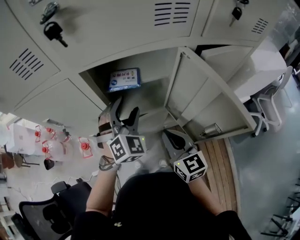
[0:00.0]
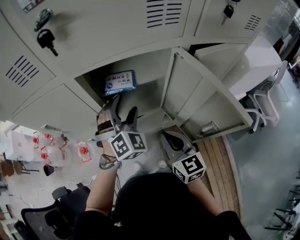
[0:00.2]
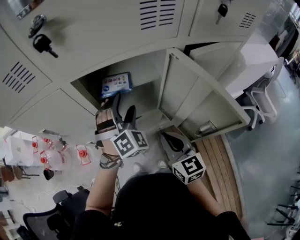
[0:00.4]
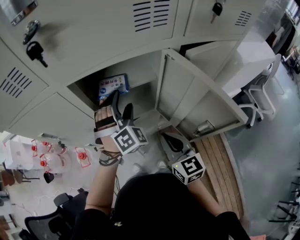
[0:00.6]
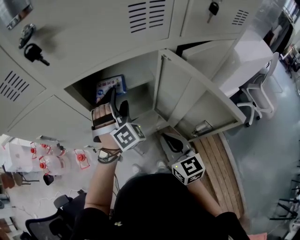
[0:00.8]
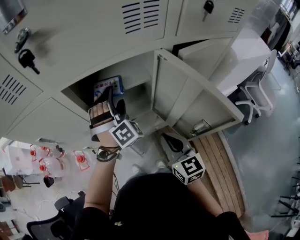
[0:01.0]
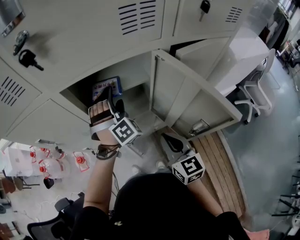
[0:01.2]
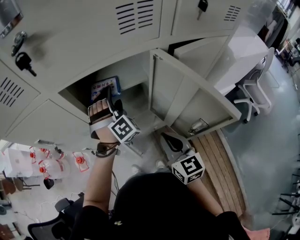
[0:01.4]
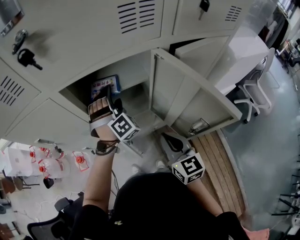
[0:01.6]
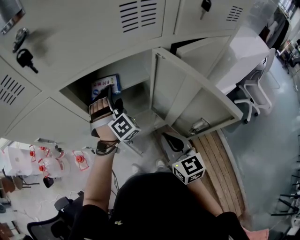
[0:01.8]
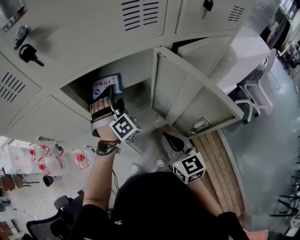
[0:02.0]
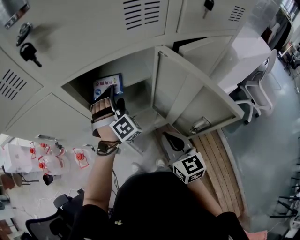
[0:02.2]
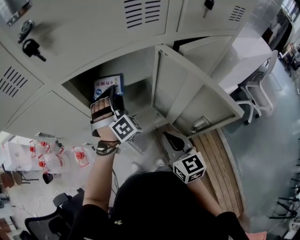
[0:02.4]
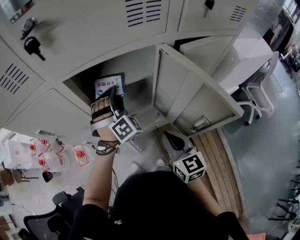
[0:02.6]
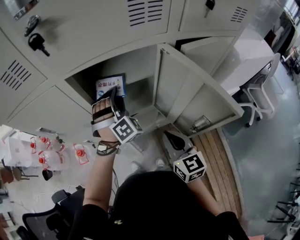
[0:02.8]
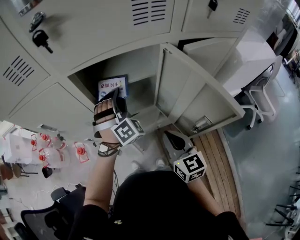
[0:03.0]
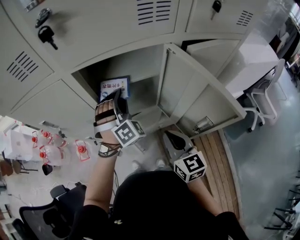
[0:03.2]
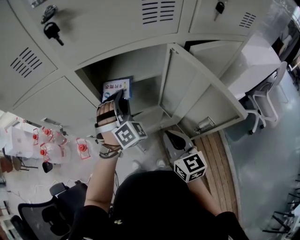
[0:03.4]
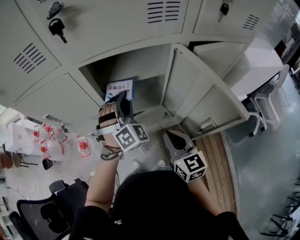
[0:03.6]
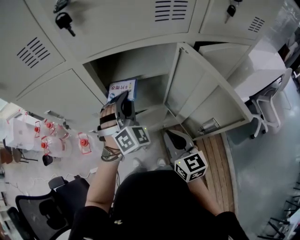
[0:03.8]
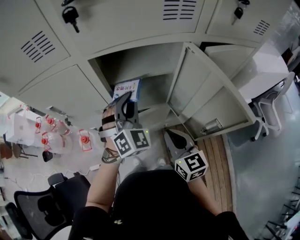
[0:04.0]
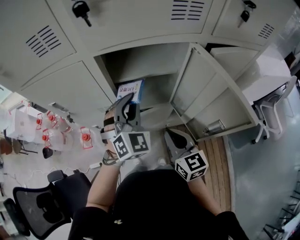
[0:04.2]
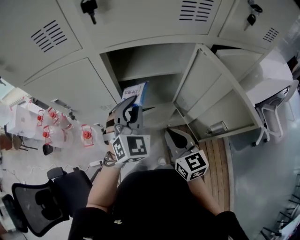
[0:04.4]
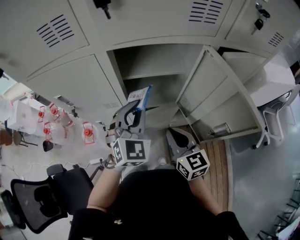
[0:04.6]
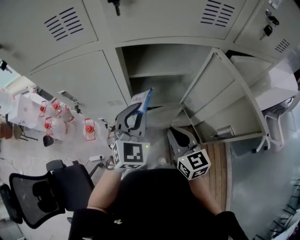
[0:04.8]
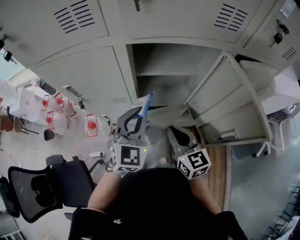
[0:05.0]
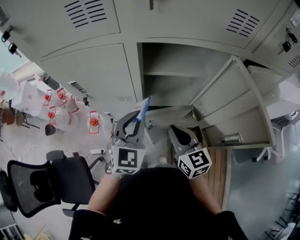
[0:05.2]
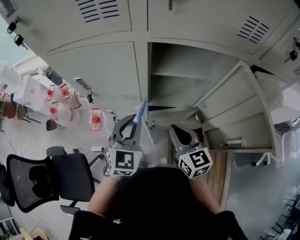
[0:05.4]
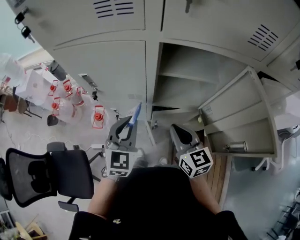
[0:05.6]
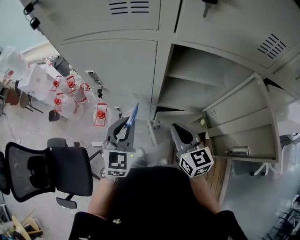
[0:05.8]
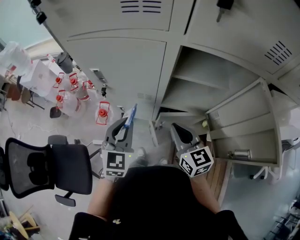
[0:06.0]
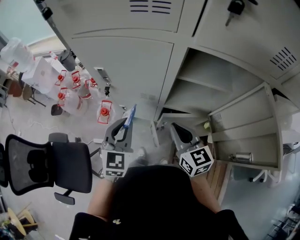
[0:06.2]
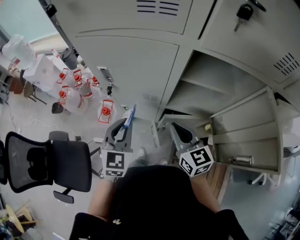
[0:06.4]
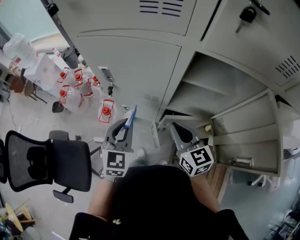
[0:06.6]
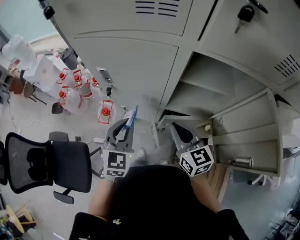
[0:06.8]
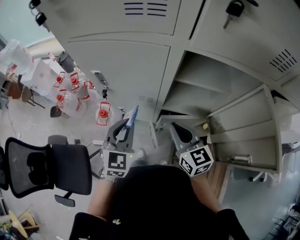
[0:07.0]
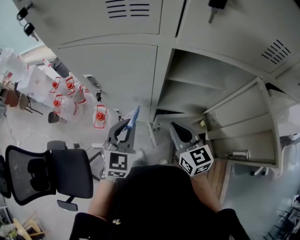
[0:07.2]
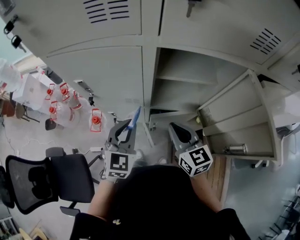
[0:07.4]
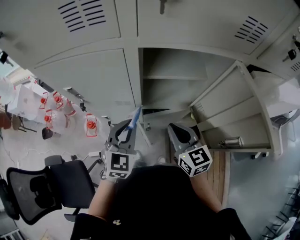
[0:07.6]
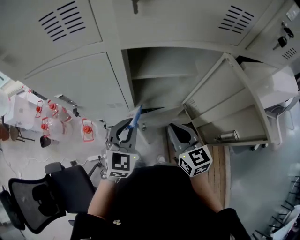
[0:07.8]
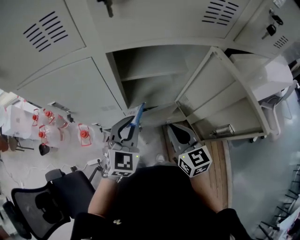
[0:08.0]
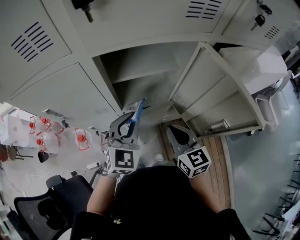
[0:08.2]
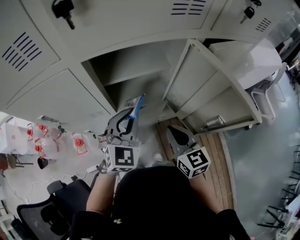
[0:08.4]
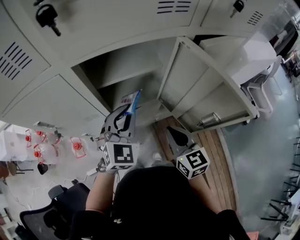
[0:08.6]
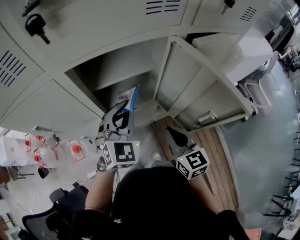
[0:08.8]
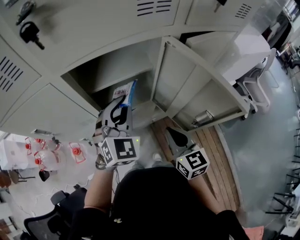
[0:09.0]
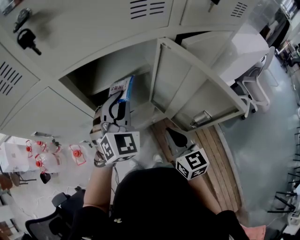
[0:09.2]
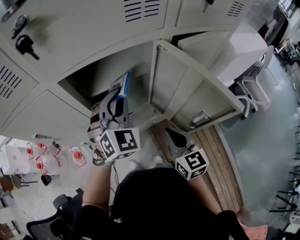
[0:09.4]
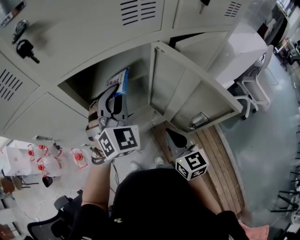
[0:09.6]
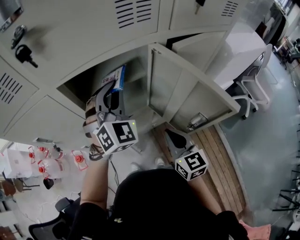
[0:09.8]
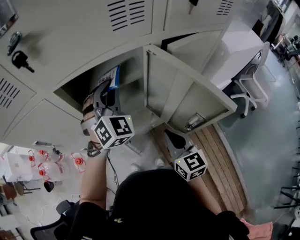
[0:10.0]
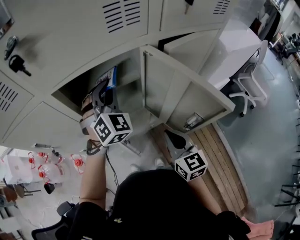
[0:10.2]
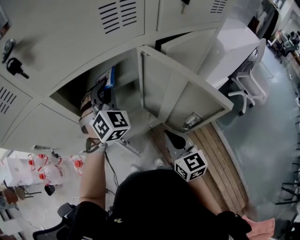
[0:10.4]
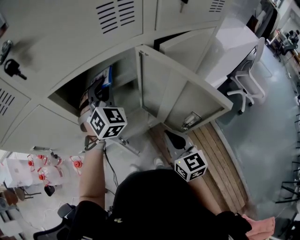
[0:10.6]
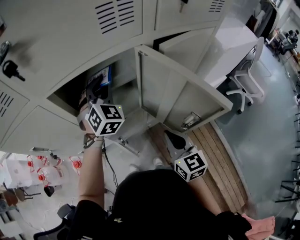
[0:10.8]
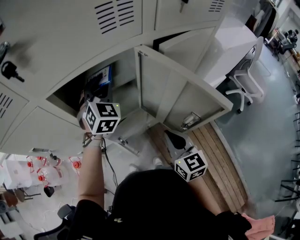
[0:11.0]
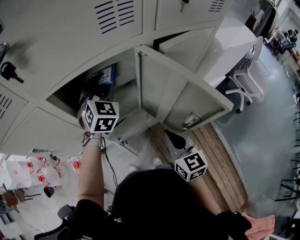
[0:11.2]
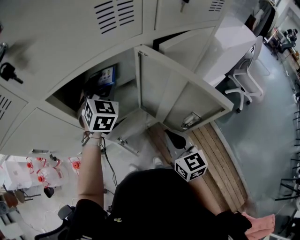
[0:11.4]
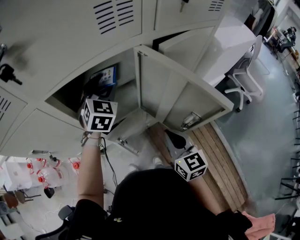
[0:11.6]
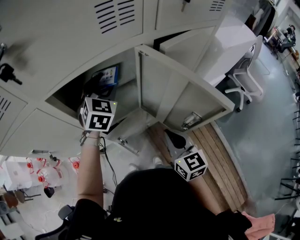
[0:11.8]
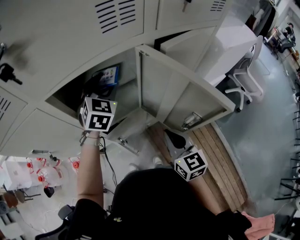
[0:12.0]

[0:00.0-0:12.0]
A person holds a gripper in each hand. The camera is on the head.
0:00.0 to 0:01.6: The left gripper heads forward, covering some 10 cm, and changes its angle by roughly 30 degrees.
0:01.6 to 0:03.0: The left gripper closes.
0:03.0 to 0:04.4: The right gripper moves to the left, about 5 cm. The left gripper heads backward and upward, covering approximately 10 cm, and turns by about 40 degrees.
0:04.4 to 0:06.0: The right gripper is displaced to the left and forward by roughly 10 cm, while the left gripper moves to the left, roughly 20 cm, and turns by roughly 30 degrees.
0:06.0 to 0:07.6: The left gripper goes some 10 cm to the right. The right gripper is displaced to the right by some 5 cm.
0:07.6 to 0:09.0: The right gripper is displaced to the right by roughly 10 cm, and rotates about 20 degrees. The left gripper heads to the right, forward and upward, covering about 20 cm, and rotates about 20 degrees.
0:09.0 to 0:10.4: The left gripper shifts approximately 10 cm forward.
0:10.4 to 0:12.0: The left gripper swivels some 30 degrees, and opens.

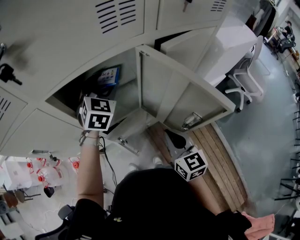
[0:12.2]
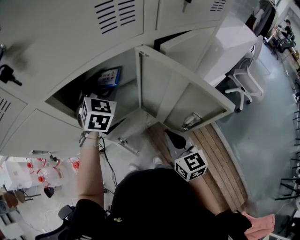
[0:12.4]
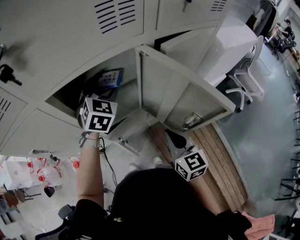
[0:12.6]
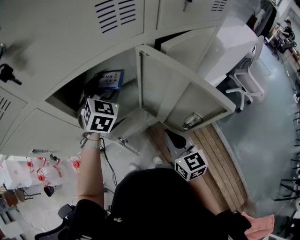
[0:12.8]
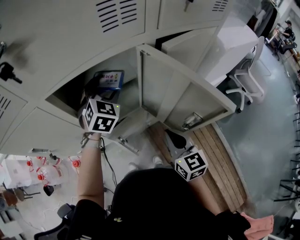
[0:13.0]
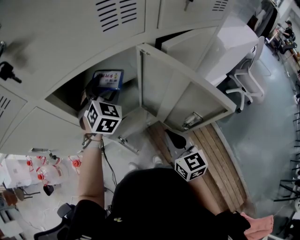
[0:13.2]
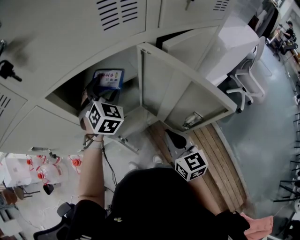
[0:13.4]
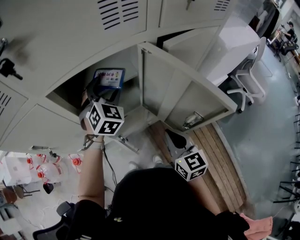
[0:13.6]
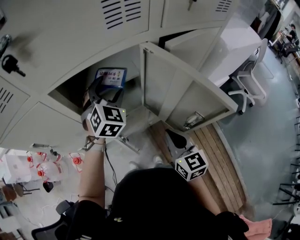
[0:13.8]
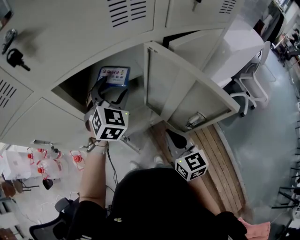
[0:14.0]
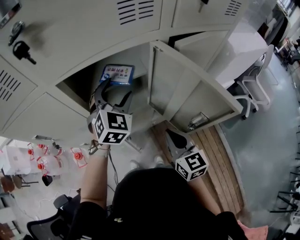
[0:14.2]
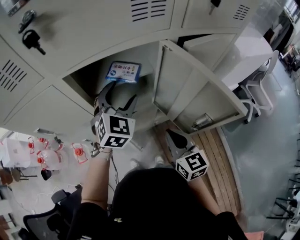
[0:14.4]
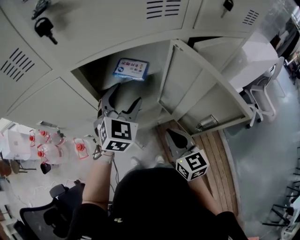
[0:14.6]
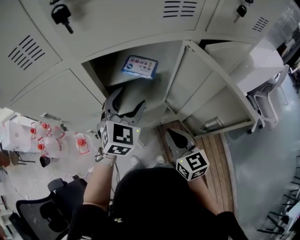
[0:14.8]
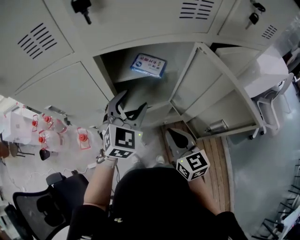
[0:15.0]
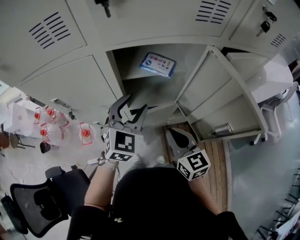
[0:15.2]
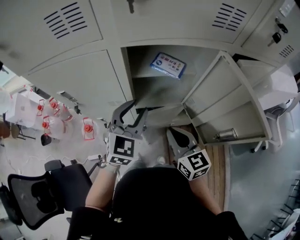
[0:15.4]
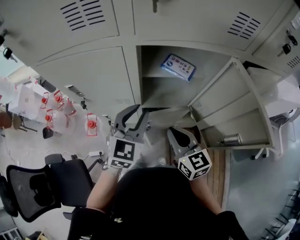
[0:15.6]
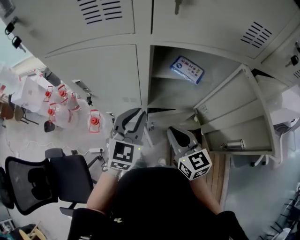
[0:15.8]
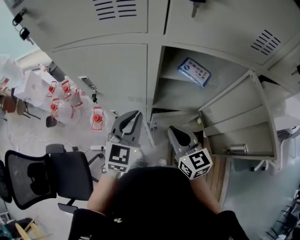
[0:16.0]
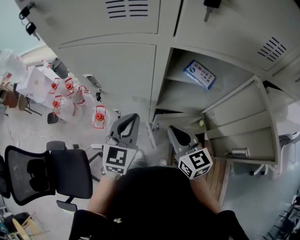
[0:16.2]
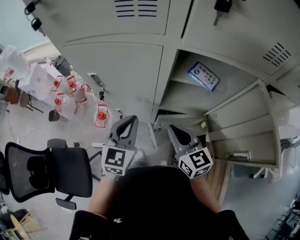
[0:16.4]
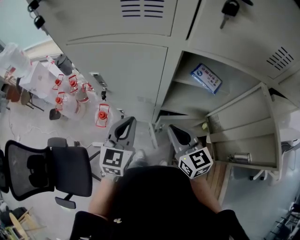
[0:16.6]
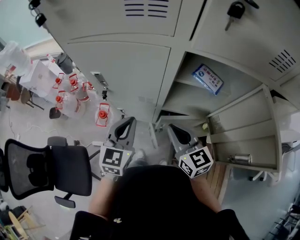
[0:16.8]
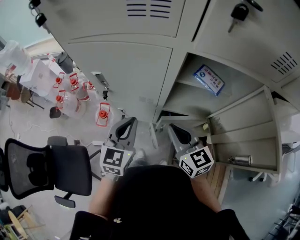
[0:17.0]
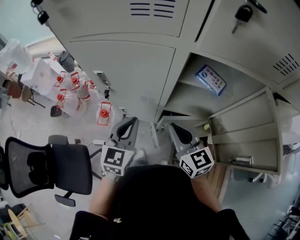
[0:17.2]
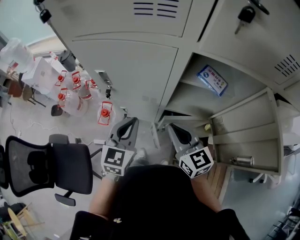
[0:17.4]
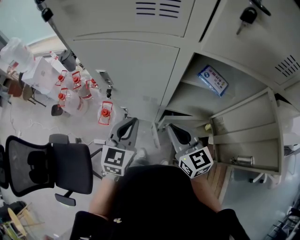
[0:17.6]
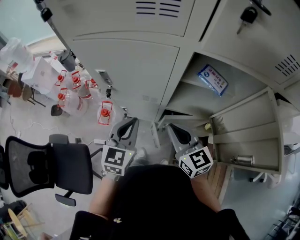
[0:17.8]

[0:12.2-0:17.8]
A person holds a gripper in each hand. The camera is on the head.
0:12.2 to 0:13.6: The grippers move only a little.
0:13.6 to 0:15.0: The right gripper is displaced to the left by roughly 10 cm. The left gripper goes approximately 10 cm backward.
0:15.0 to 0:16.4: The grippers both shift to the left by about 15 cm. The right gripper turns by approximately 20 degrees, while the left gripper changes its angle by roughly 30 degrees, and closes.
0:16.4 to 0:17.8: There are only small adjustments of the grippers.

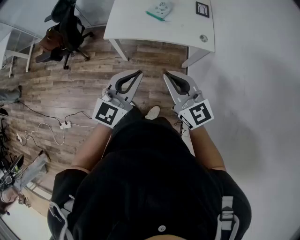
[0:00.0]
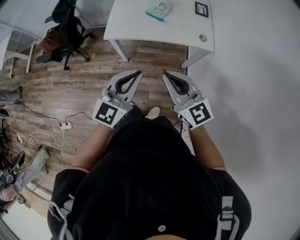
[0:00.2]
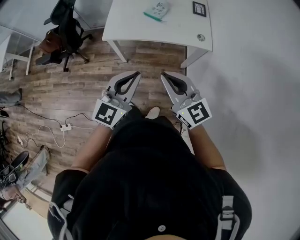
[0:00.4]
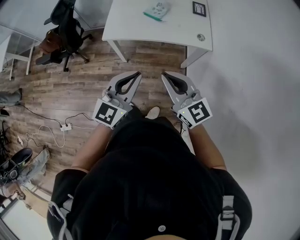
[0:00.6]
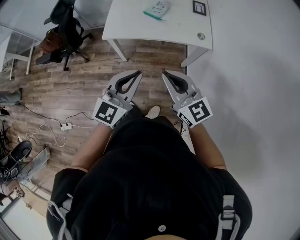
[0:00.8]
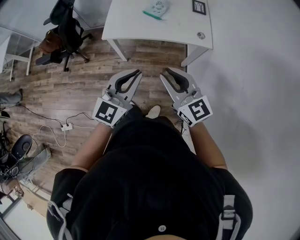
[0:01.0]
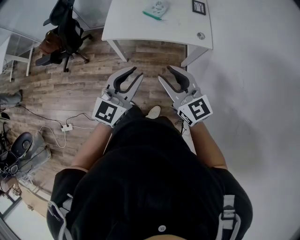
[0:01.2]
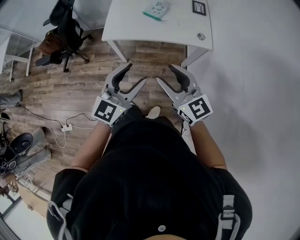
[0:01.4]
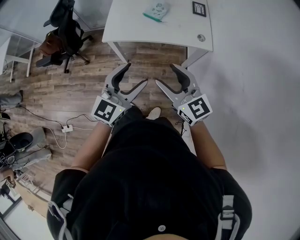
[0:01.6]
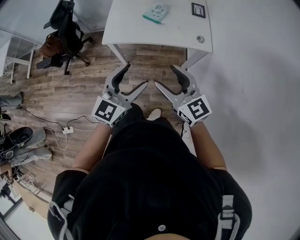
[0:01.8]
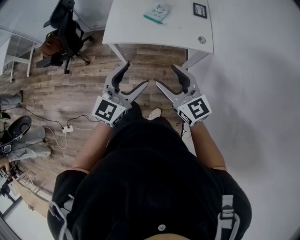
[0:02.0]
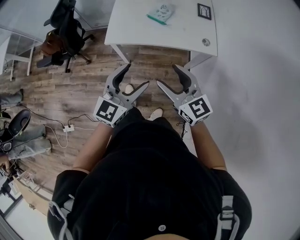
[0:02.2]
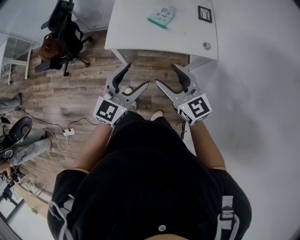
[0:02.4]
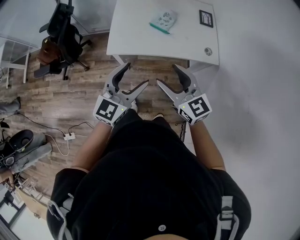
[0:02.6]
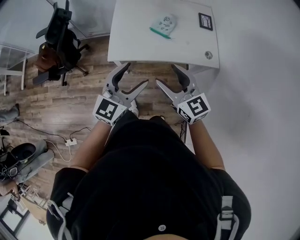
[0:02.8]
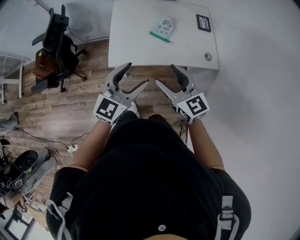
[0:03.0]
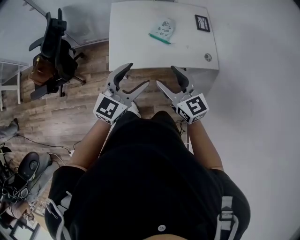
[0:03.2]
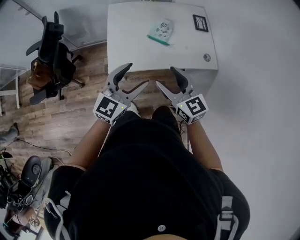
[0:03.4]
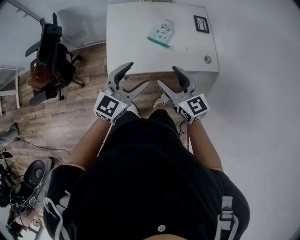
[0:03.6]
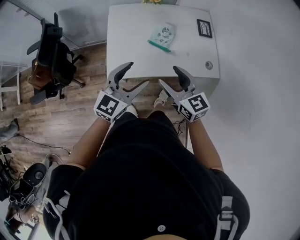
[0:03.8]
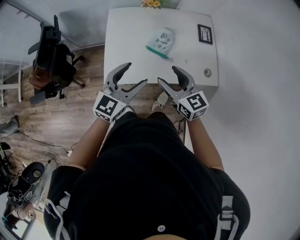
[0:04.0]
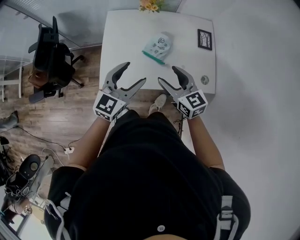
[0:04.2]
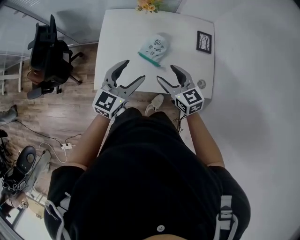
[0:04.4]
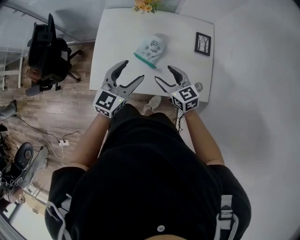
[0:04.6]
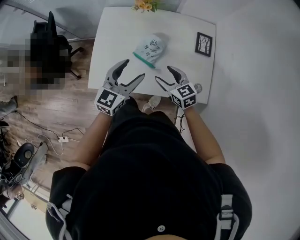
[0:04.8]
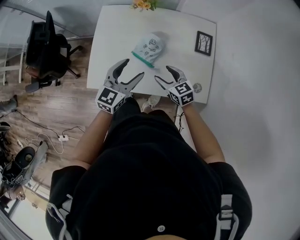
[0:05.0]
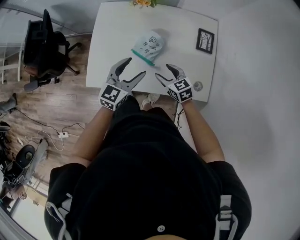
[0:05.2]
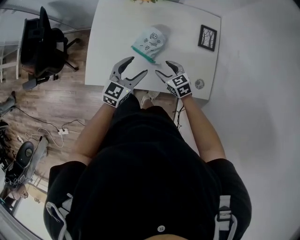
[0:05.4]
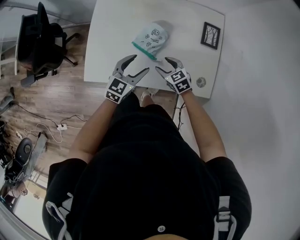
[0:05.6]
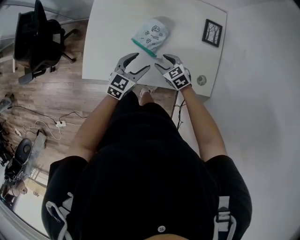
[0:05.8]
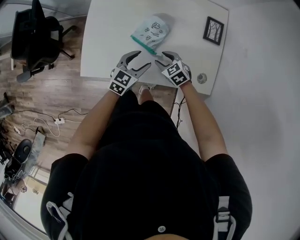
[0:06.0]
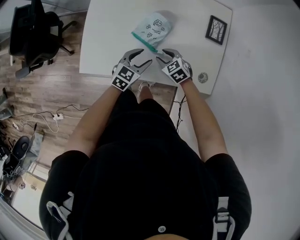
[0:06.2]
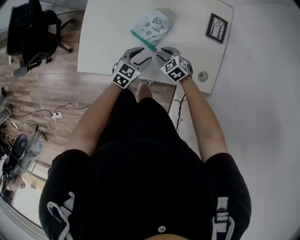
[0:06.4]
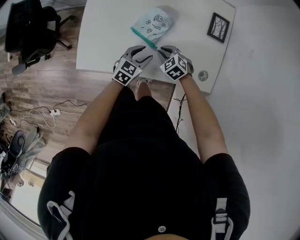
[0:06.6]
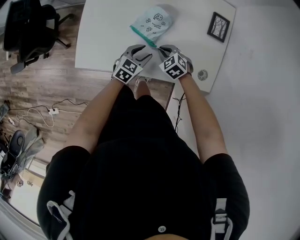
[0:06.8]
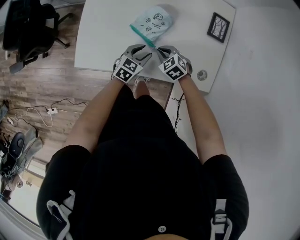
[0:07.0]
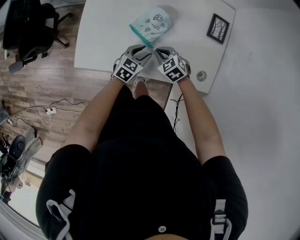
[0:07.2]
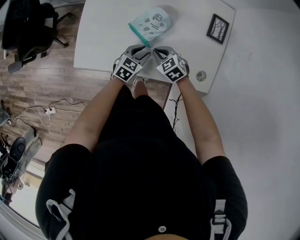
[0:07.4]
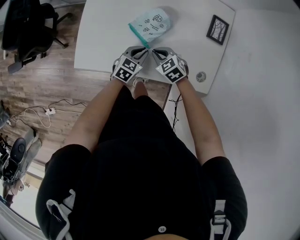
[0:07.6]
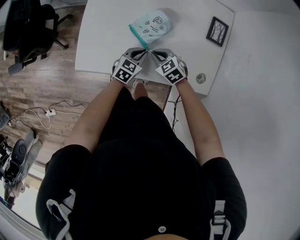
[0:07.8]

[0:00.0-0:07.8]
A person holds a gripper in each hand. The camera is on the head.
0:00.0 to 0:01.6: The left gripper opens. The right gripper opens its fingers.
0:01.6 to 0:03.2: Both grippers move forward and to the left, some 25 cm.
0:03.2 to 0:04.6: The right gripper moves forward, to the right and downward, approximately 30 cm. The left gripper travels forward and to the right by roughly 25 cm.
0:04.6 to 0:06.2: Both grippers move downward, some 20 cm. The left gripper turns by some 20 degrees, while the right gripper changes its angle by roughly 30 degrees, and closes up.
0:06.2 to 0:07.8: The right gripper closes up; the left gripper goes roughly 5 cm downward, and closes up.
